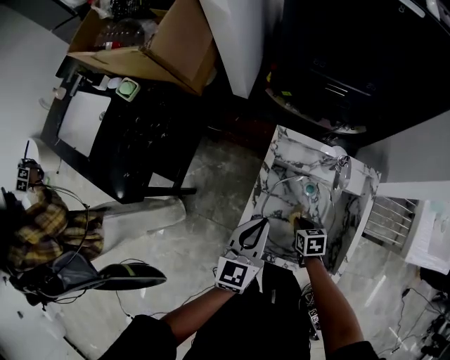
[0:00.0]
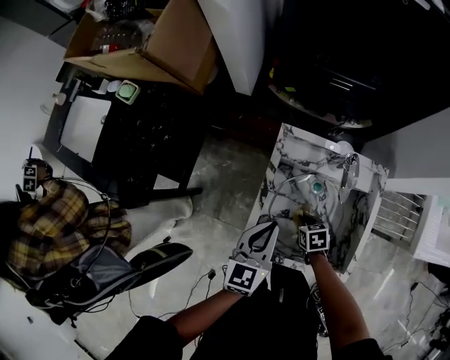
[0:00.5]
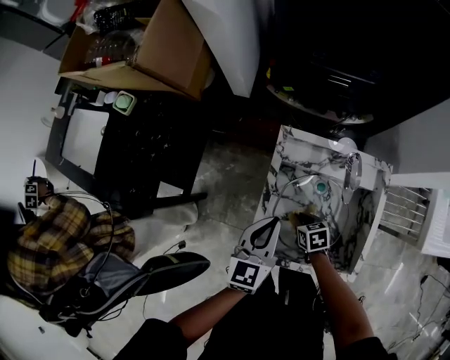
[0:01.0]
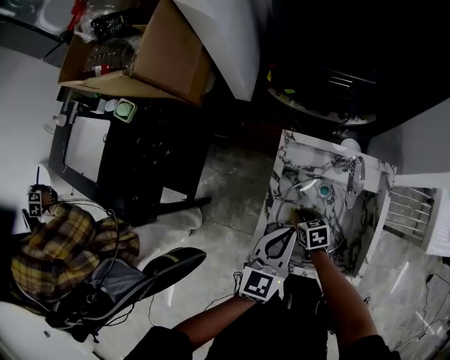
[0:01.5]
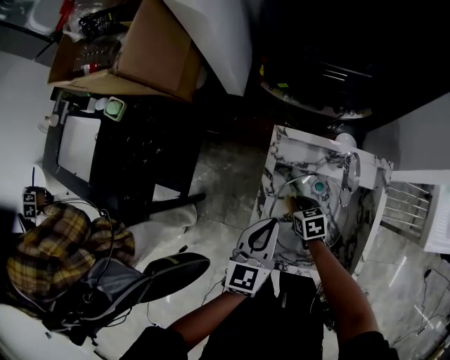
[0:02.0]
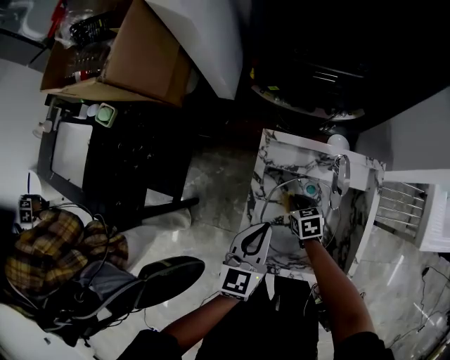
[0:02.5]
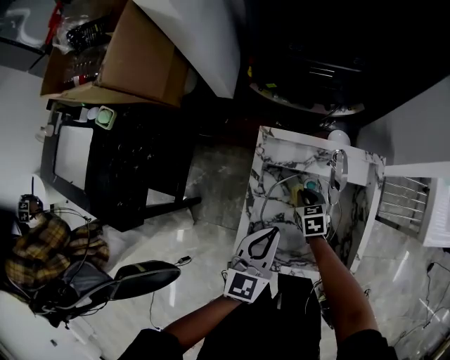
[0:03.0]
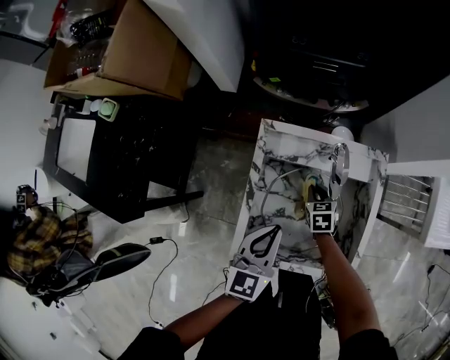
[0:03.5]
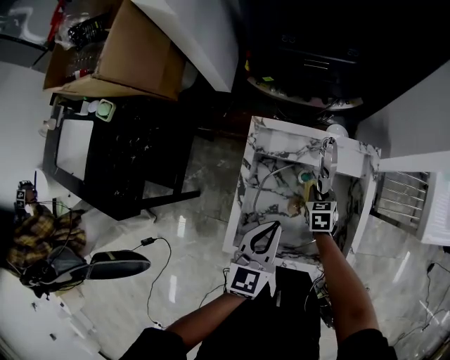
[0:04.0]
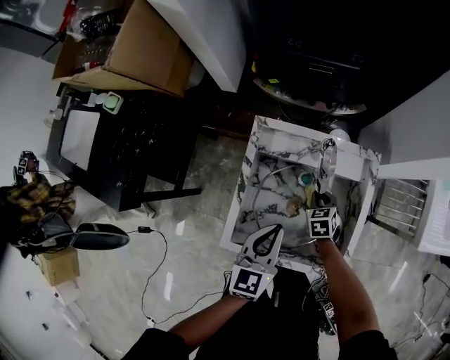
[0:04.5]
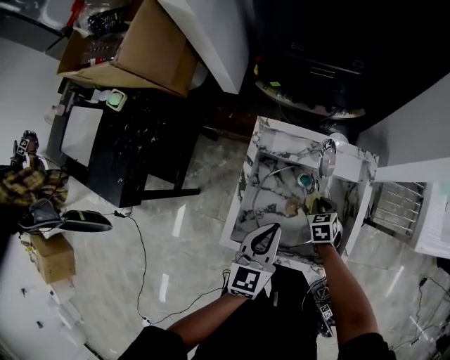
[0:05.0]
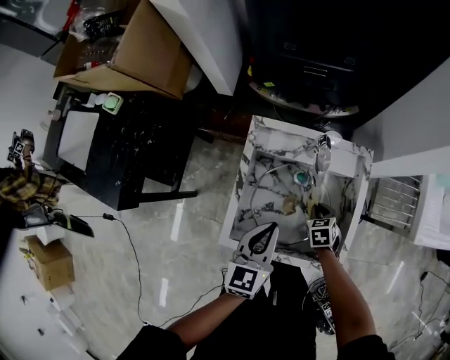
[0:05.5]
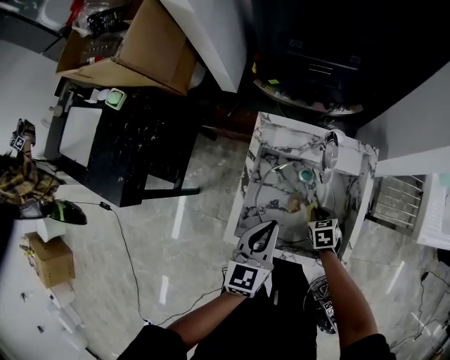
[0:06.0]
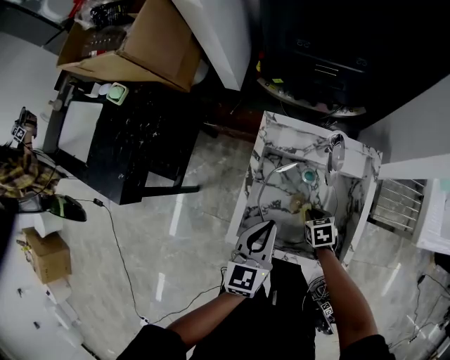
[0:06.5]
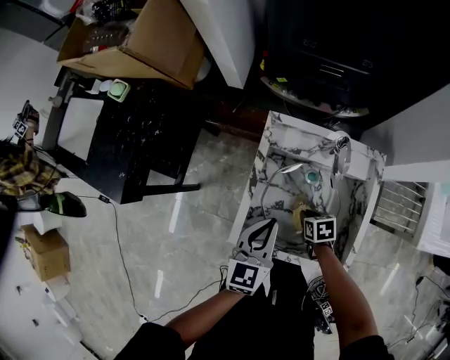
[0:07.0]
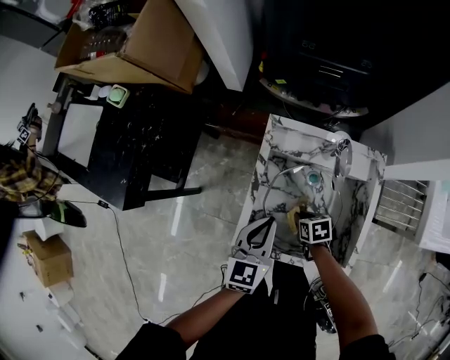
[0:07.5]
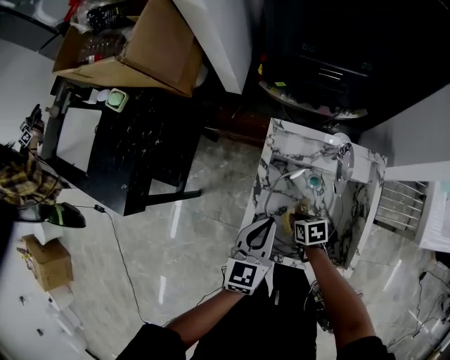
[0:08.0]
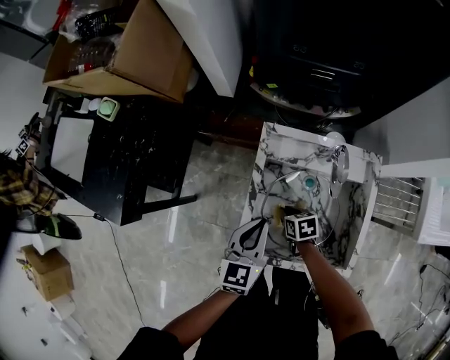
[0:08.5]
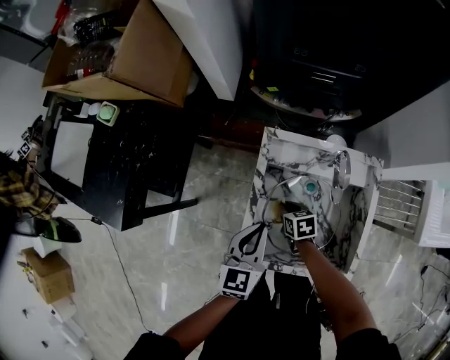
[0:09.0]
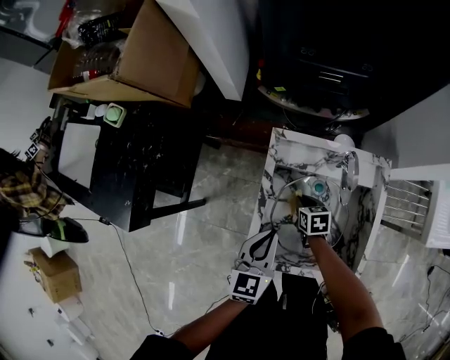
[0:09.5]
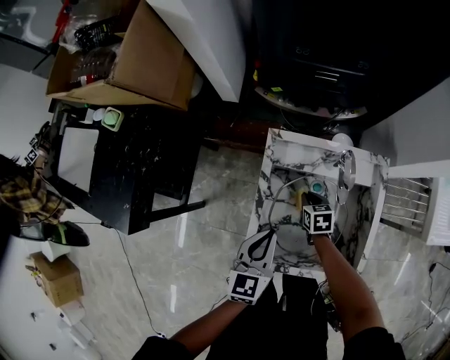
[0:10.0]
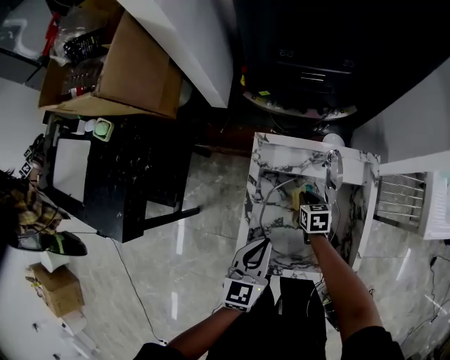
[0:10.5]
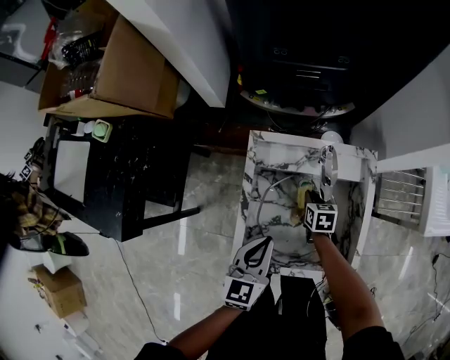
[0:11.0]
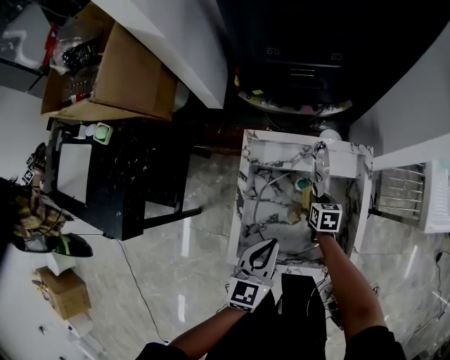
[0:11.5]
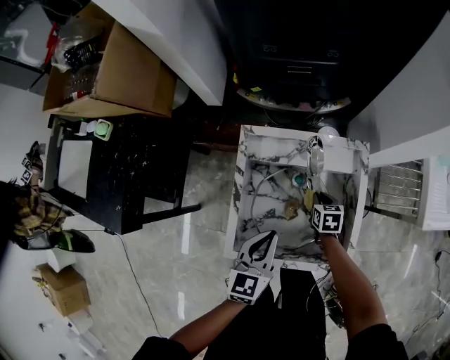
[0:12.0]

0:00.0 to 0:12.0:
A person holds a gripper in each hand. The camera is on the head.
0:00.0 to 0:02.0: The right gripper heads forward, covering about 10 cm.
0:02.0 to 0:04.0: The right gripper shifts approximately 15 cm to the right; the left gripper shifts approximately 5 cm to the right.
0:04.0 to 0:06.0: The right gripper is displaced backward by about 10 cm.
0:06.0 to 0:08.0: The right gripper moves to the left, approximately 10 cm, and turns by some 20 degrees. The left gripper changes place by about 5 cm.
0:08.0 to 0:10.0: The right gripper moves forward, some 10 cm.
0:10.0 to 0:12.0: The left gripper moves to the right, about 10 cm, while the right gripper heads to the right, covering approximately 10 cm.

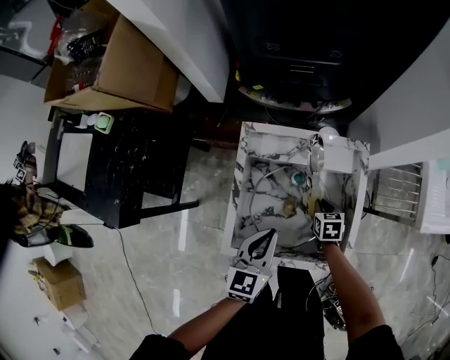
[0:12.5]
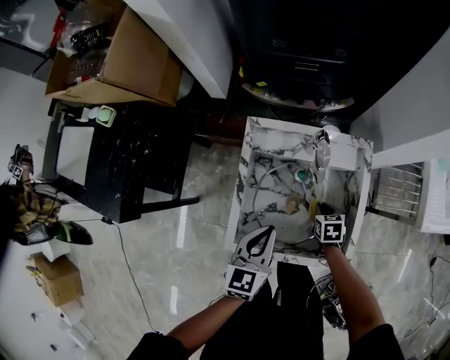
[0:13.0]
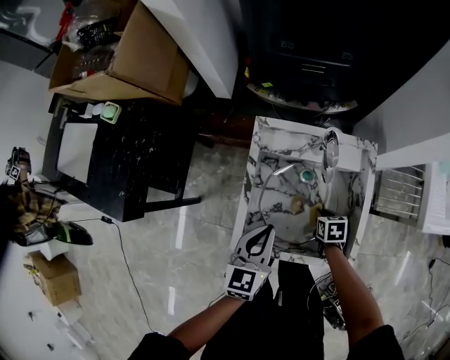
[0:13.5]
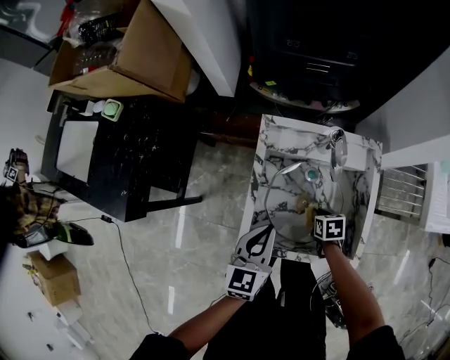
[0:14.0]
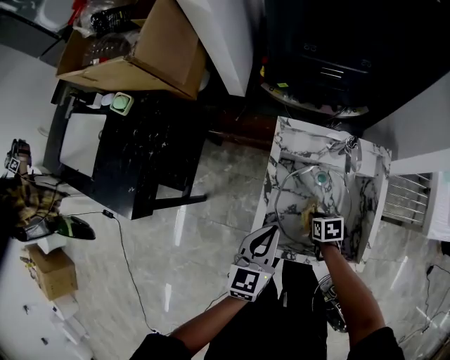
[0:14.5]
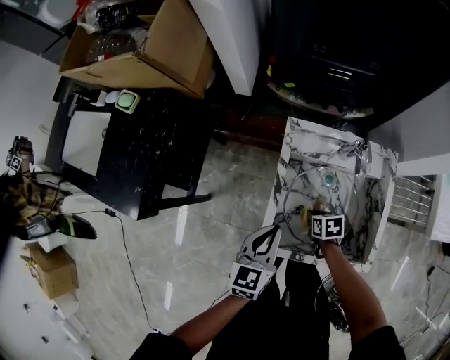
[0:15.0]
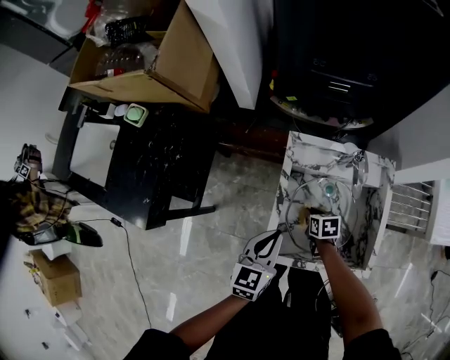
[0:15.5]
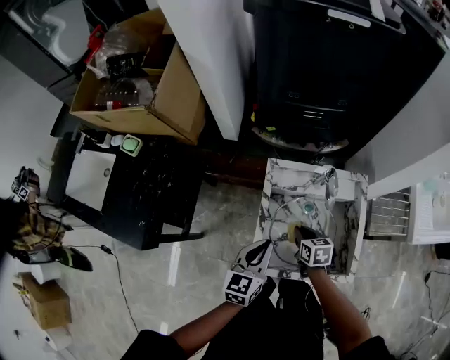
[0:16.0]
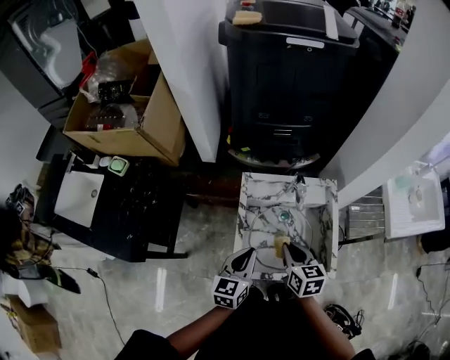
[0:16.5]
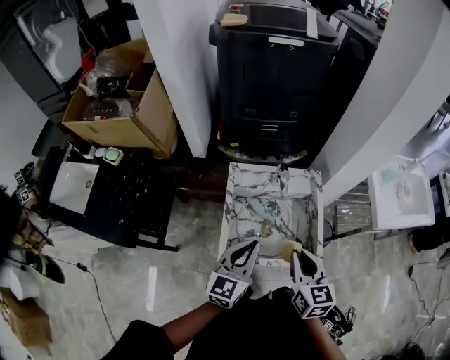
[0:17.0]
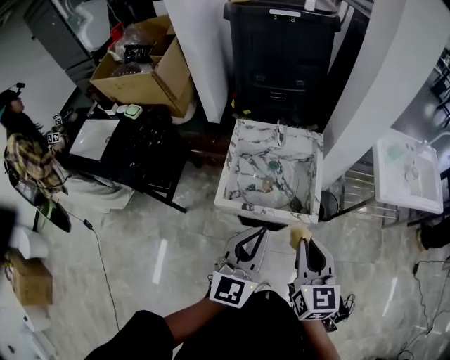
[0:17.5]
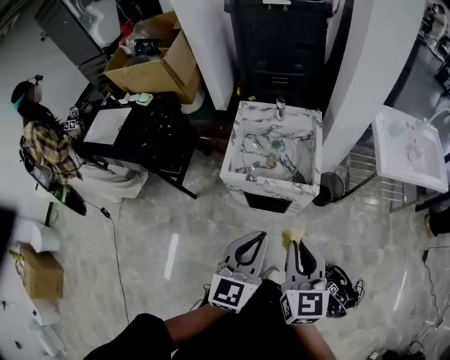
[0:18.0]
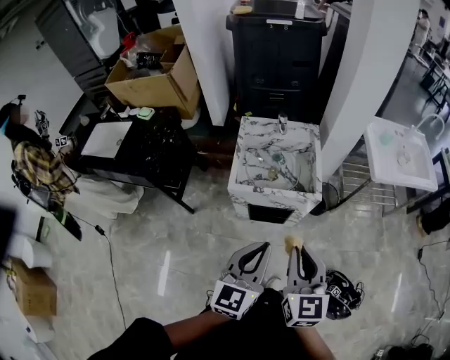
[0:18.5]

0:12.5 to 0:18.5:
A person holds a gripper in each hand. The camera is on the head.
0:12.5 to 0:14.5: Both grippers travel together to the left, some 10 cm.
0:14.5 to 0:16.5: The right gripper heads upward, covering approximately 25 cm, and angles its fingers upward, by about 30 degrees. The left gripper goes approximately 5 cm upward.
0:16.5 to 0:18.5: Both grippers travel together backward and upward, some 40 cm. The right gripper changes its angle by some 30 degrees.

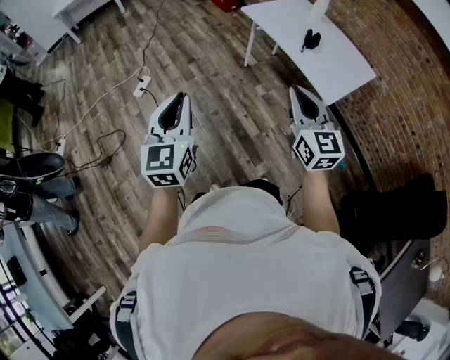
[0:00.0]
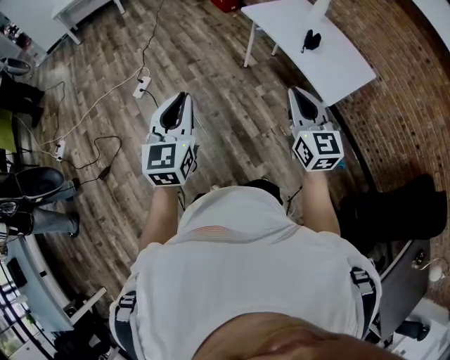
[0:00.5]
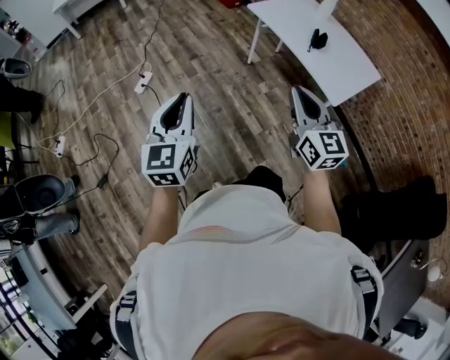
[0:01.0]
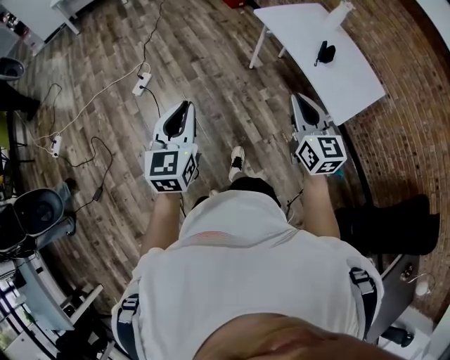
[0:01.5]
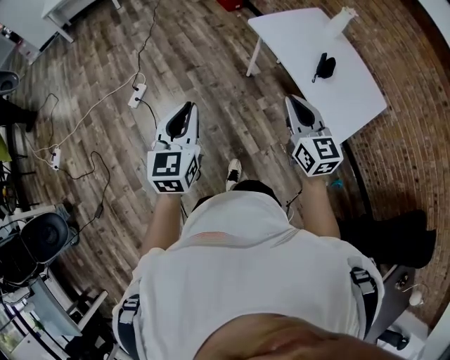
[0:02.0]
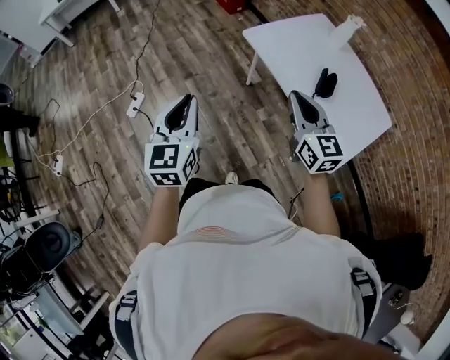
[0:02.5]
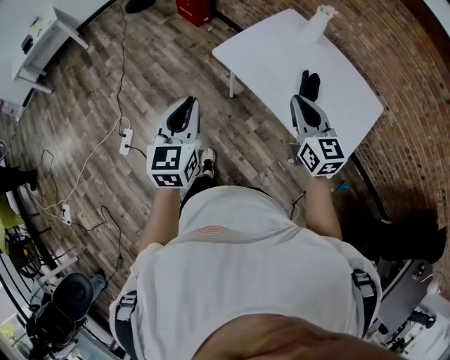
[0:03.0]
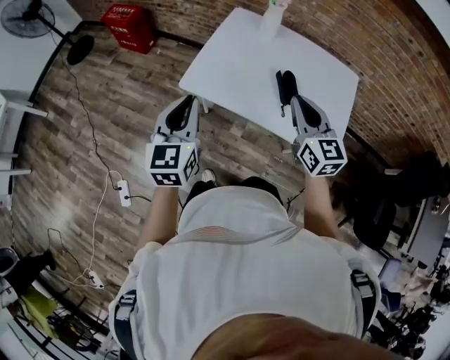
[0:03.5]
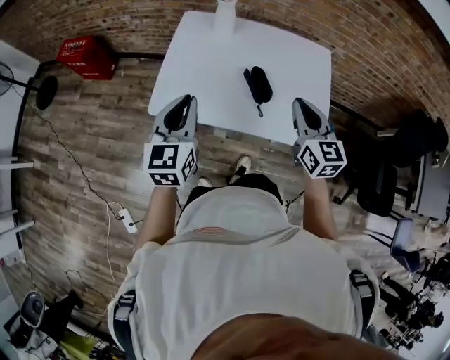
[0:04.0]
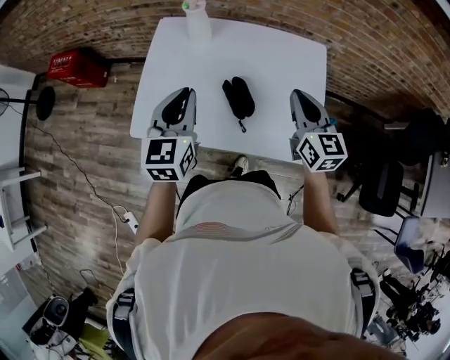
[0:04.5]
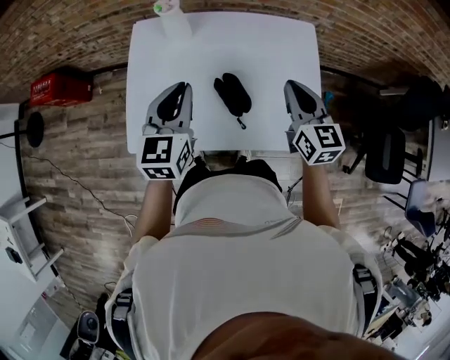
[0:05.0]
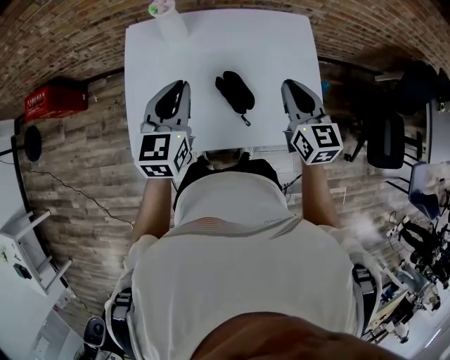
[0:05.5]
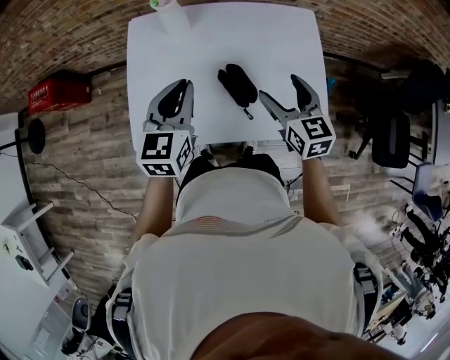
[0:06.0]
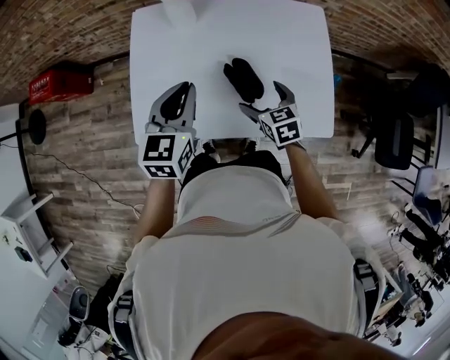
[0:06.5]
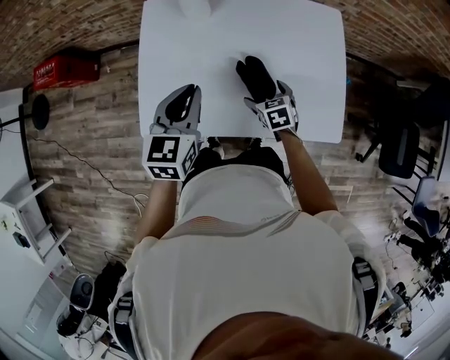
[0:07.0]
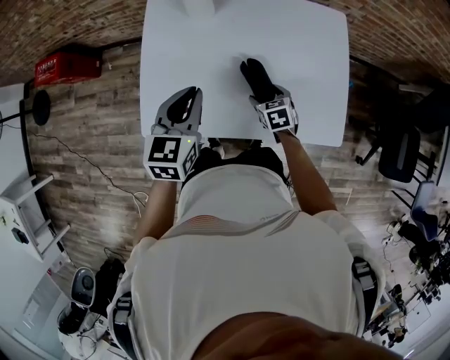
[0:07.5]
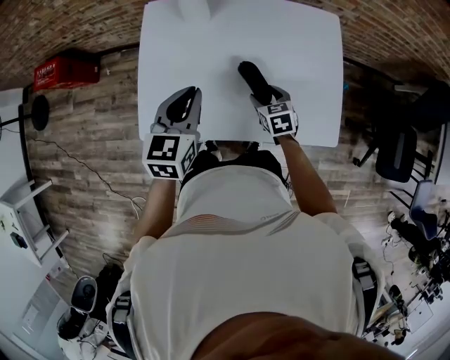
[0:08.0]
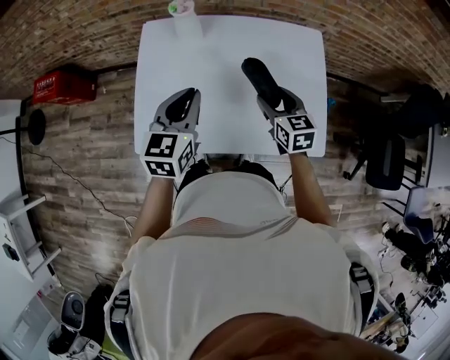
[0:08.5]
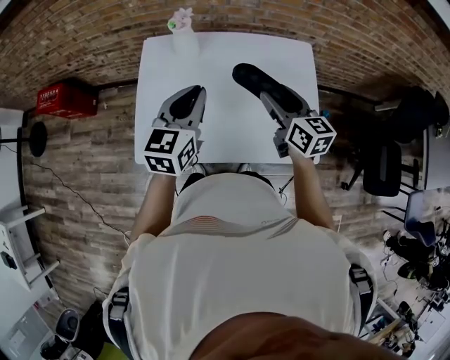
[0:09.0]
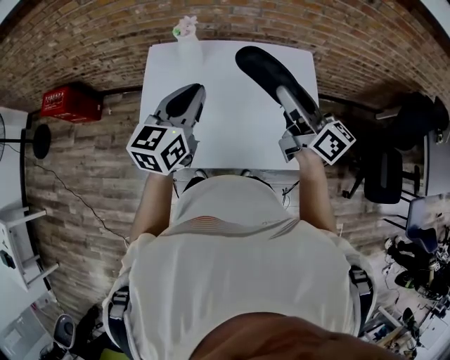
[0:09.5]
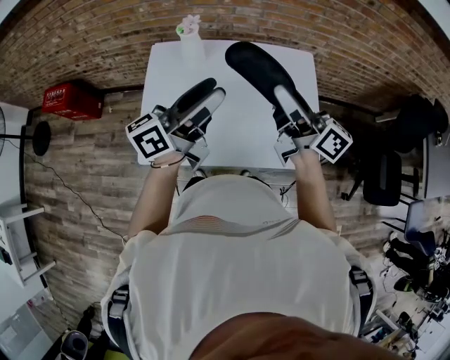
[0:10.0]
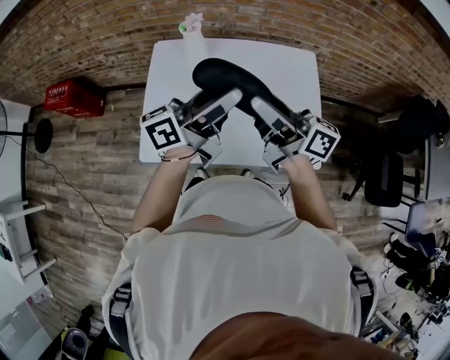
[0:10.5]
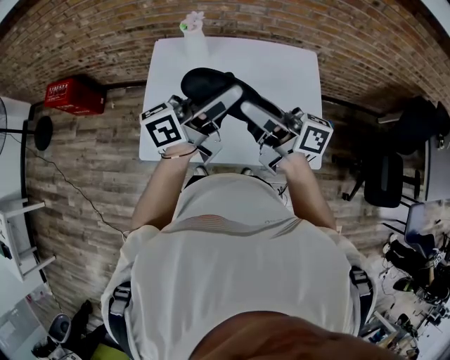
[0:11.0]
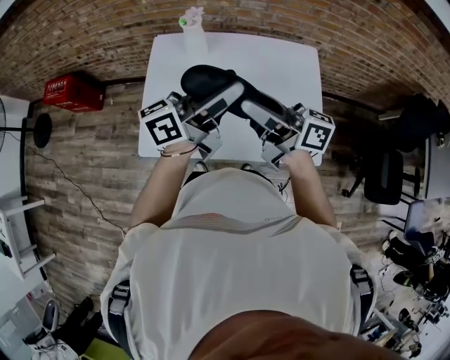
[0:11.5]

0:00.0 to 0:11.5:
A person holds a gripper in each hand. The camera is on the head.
0:00.0 to 0:02.0: Both grippers move forward, approximately 20 cm.
0:02.0 to 0:04.0: The left gripper ends up about 50 cm from where it was, and rotates roughly 50 degrees, while the right gripper shifts by some 35 cm, and swivels approximately 50 degrees.
0:04.0 to 0:06.0: The left gripper goes roughly 20 cm forward and to the right. The right gripper travels forward and downward by about 15 cm, and opens.
0:06.0 to 0:07.5: The right gripper is displaced downward by about 25 cm, and angles its fingers downward, by roughly 30 degrees. The left gripper travels downward by about 5 cm.
0:07.5 to 0:09.5: The right gripper moves upward, approximately 40 cm, and angles its fingers upward, by about 60 degrees; the left gripper moves upward, roughly 15 cm, and rotates some 20 degrees.
0:09.5 to 0:11.5: The left gripper travels to the right by some 5 cm, turns by roughly 50 degrees, and opens. The right gripper heads to the left and backward, covering about 10 cm, and changes its angle by about 30 degrees.
